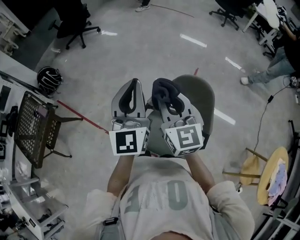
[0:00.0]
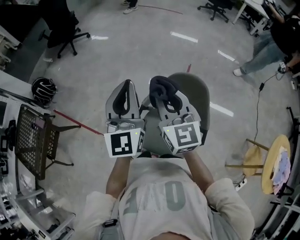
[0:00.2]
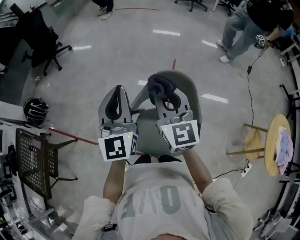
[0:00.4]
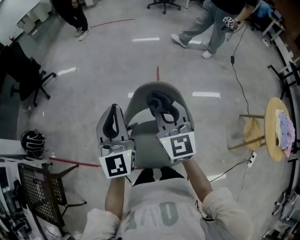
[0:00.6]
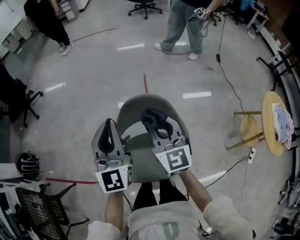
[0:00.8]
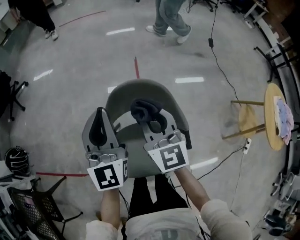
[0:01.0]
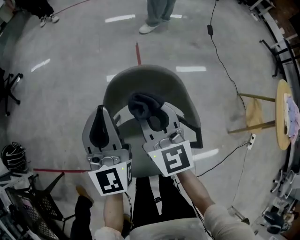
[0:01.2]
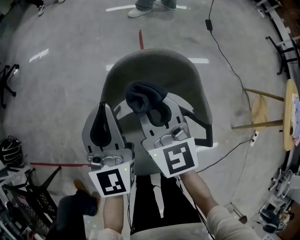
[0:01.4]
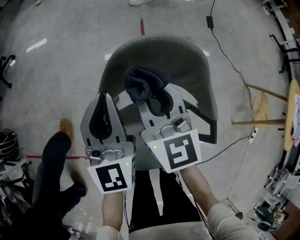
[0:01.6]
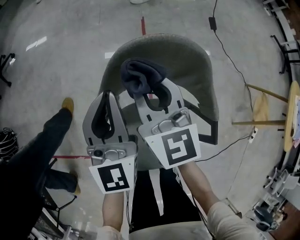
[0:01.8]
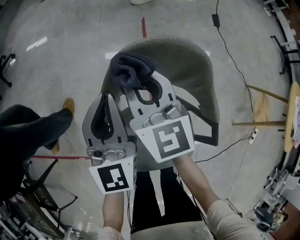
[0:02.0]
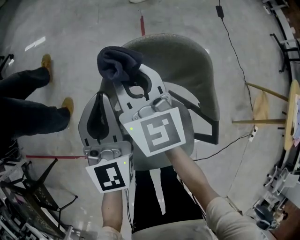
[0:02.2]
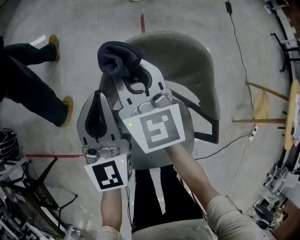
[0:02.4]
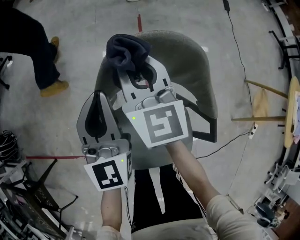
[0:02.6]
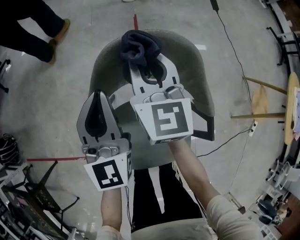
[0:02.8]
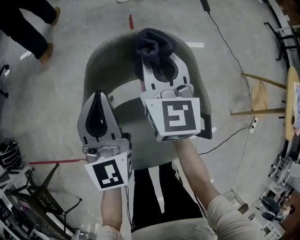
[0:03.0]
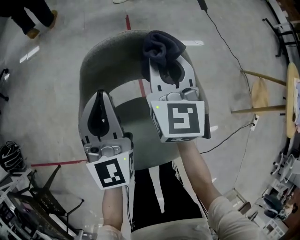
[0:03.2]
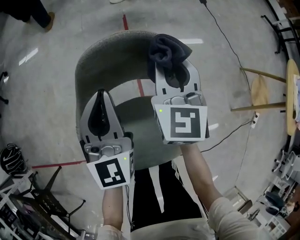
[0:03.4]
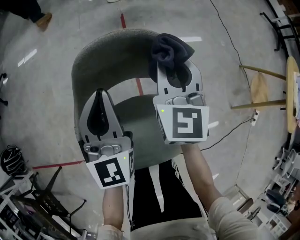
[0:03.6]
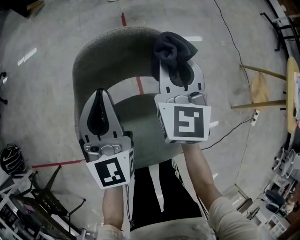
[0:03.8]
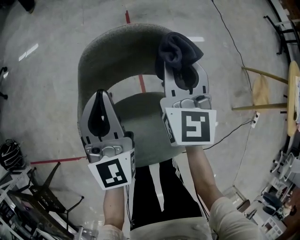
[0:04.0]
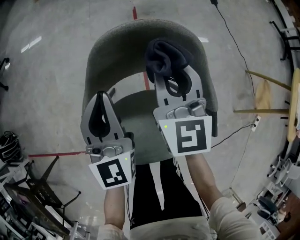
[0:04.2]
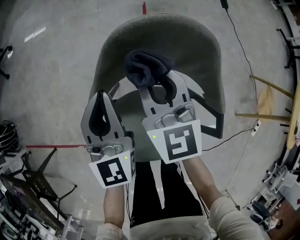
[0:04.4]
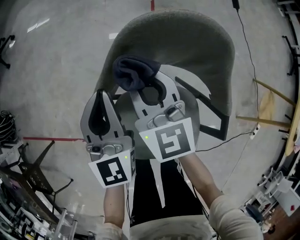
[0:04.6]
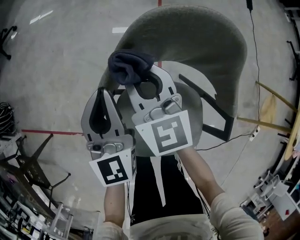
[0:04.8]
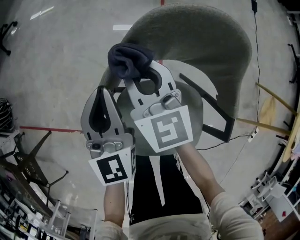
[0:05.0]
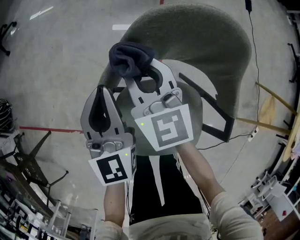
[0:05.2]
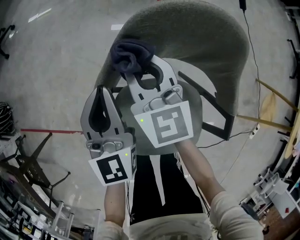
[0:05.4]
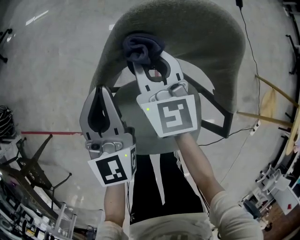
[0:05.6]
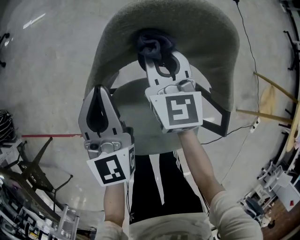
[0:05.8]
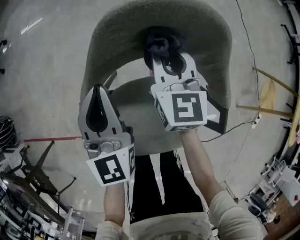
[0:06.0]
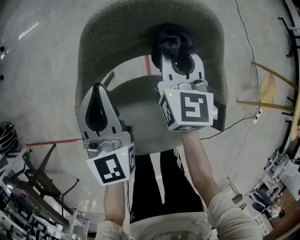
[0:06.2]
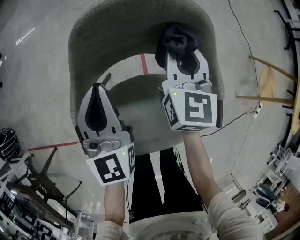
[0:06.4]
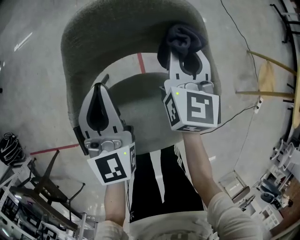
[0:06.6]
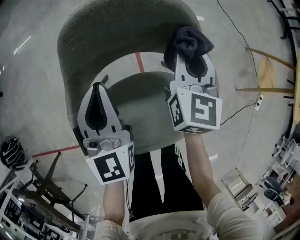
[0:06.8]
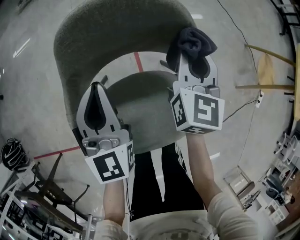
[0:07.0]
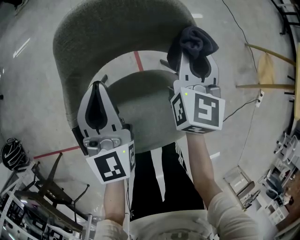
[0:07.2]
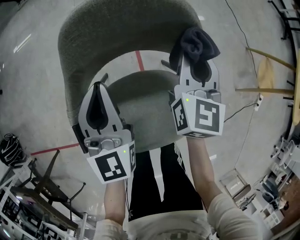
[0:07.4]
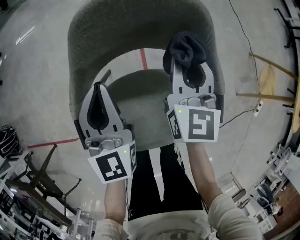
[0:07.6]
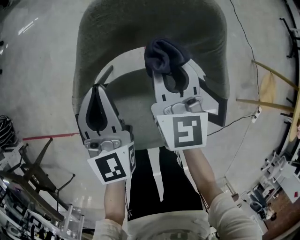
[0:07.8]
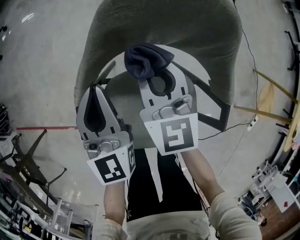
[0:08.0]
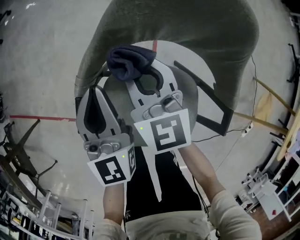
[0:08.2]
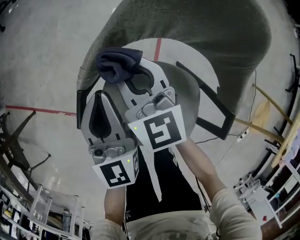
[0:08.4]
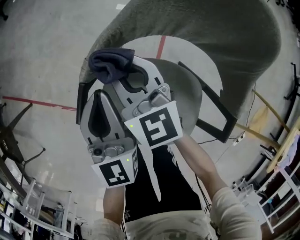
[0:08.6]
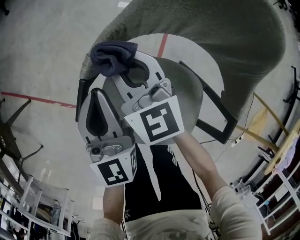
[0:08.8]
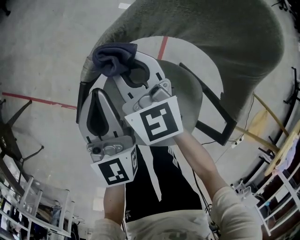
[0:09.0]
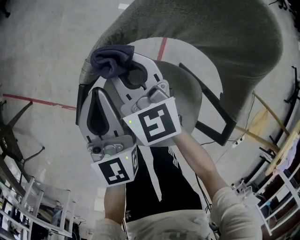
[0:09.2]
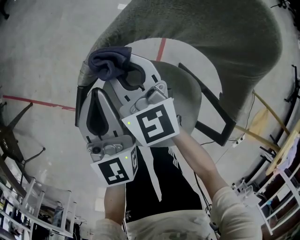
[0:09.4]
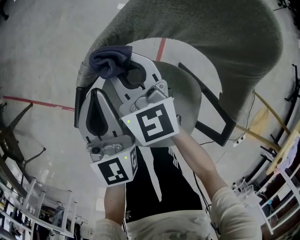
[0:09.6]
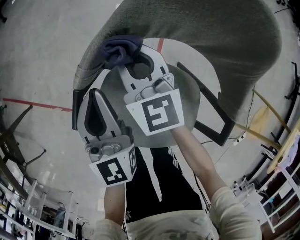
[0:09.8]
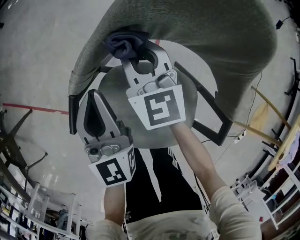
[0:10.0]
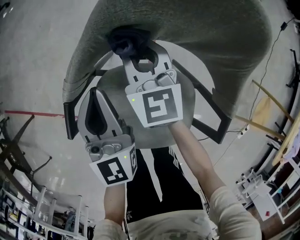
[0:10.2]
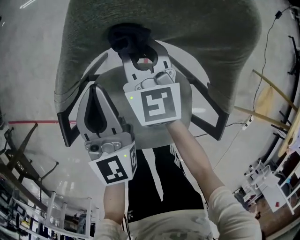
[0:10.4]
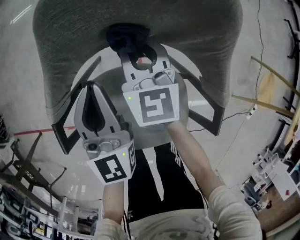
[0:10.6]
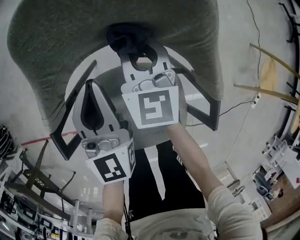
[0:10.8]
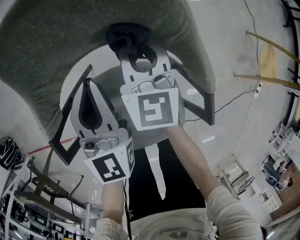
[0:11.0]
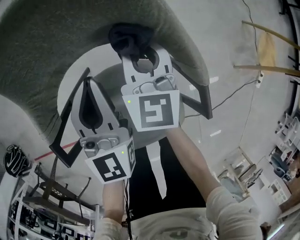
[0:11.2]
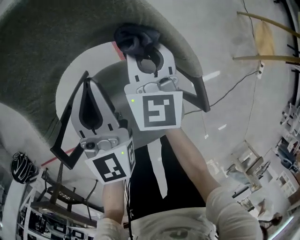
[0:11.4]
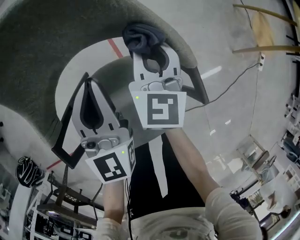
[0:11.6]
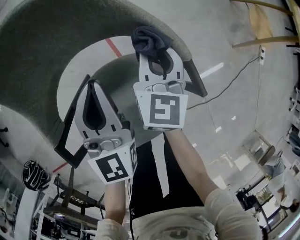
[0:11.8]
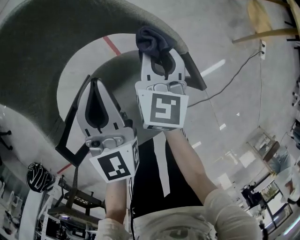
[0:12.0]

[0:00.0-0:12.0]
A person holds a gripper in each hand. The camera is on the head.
0:00.0 to 0:01.6: Both grippers travel together downward, approximately 30 cm. The left gripper swivels about 20 degrees, while the right gripper changes its angle by about 30 degrees.
0:01.6 to 0:03.0: The right gripper travels to the right by about 10 cm.
0:03.0 to 0:04.4: The right gripper is displaced to the left and backward by some 10 cm, while the left gripper shifts by some 5 cm.
0:04.4 to 0:06.0: The right gripper is displaced downward and to the right by roughly 10 cm.
0:06.0 to 0:07.6: The right gripper moves to the right, approximately 10 cm.
0:07.6 to 0:09.0: The right gripper moves approximately 30 cm, and swivels roughly 60 degrees. The left gripper changes place by roughly 15 cm, and changes its angle by roughly 30 degrees.
0:09.0 to 0:10.4: The left gripper heads to the right, covering roughly 10 cm, while the right gripper heads to the right, covering some 15 cm, and changes its angle by roughly 30 degrees.
0:10.4 to 0:12.0: The right gripper moves about 30 cm, and swivels about 60 degrees, while the left gripper shifts by about 20 cm, and turns by about 40 degrees.

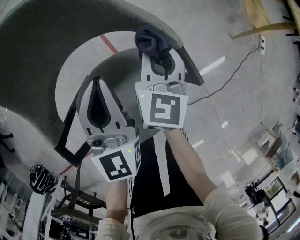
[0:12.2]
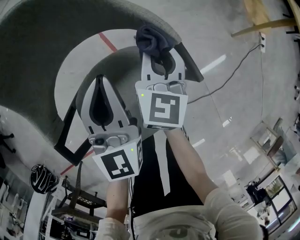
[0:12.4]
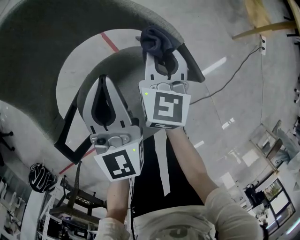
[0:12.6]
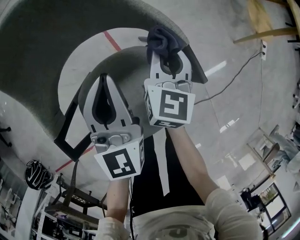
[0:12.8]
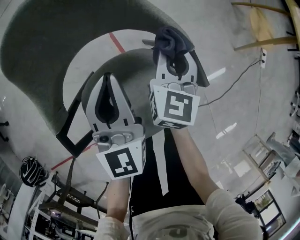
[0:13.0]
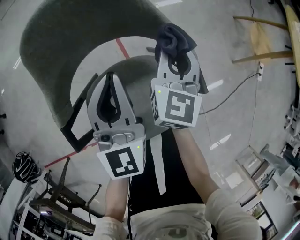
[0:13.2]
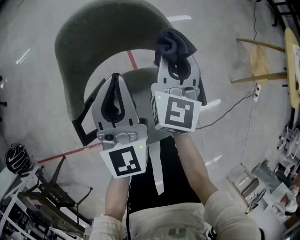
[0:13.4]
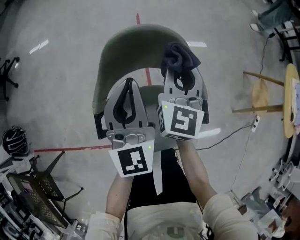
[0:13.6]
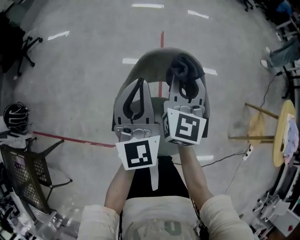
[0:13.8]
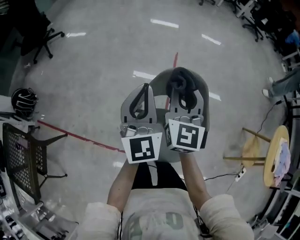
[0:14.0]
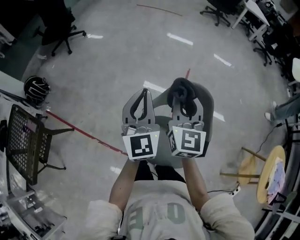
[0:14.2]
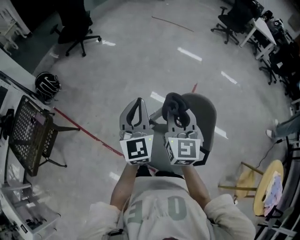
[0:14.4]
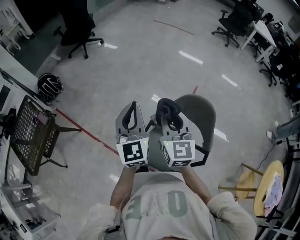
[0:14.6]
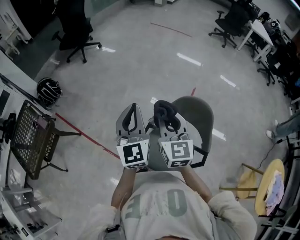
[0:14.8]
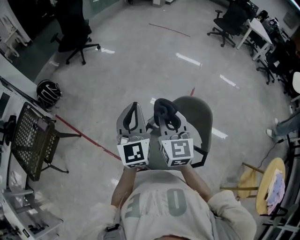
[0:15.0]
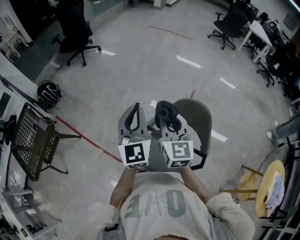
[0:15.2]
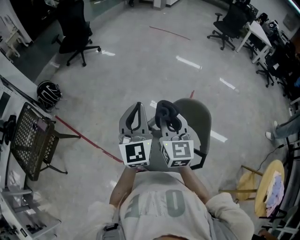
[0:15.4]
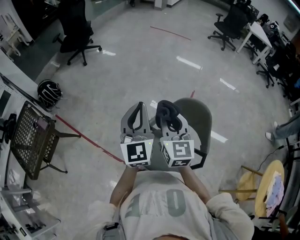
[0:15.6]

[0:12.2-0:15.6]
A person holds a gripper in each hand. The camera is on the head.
0:12.2 to 0:13.8: Both grippers move upward, about 30 cm. The right gripper swivels some 40 degrees. Meanwhile the left gripper rotates roughly 30 degrees.
0:13.8 to 0:15.6: The left gripper ends up approximately 25 cm from where it was, and rotates about 20 degrees. Meanwhile the right gripper moves roughly 25 cm, and swivels roughly 40 degrees.

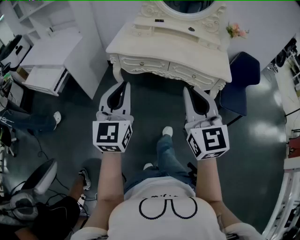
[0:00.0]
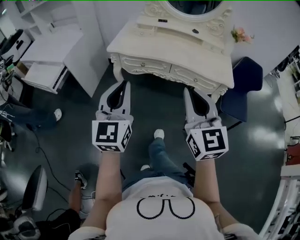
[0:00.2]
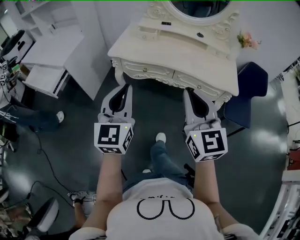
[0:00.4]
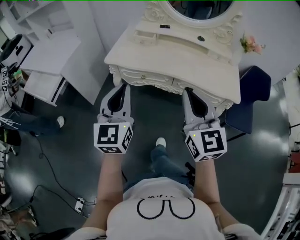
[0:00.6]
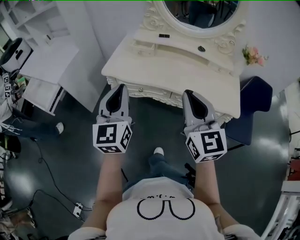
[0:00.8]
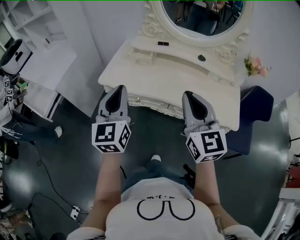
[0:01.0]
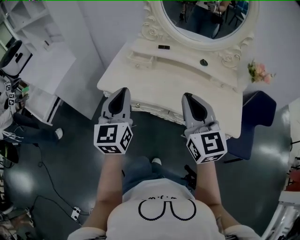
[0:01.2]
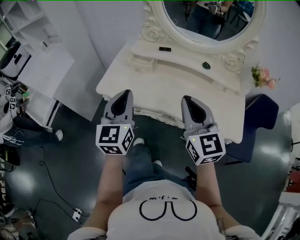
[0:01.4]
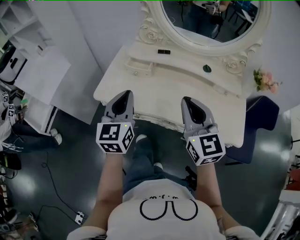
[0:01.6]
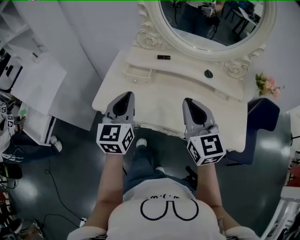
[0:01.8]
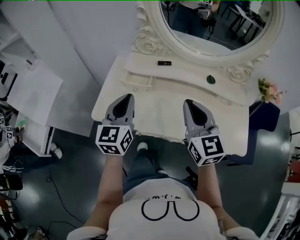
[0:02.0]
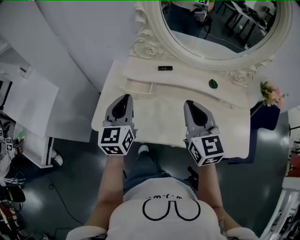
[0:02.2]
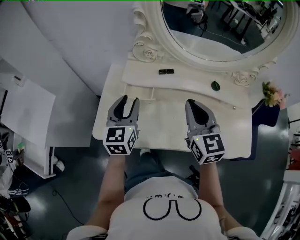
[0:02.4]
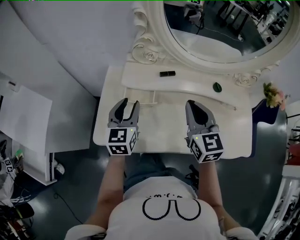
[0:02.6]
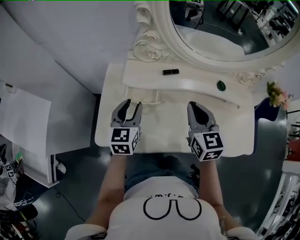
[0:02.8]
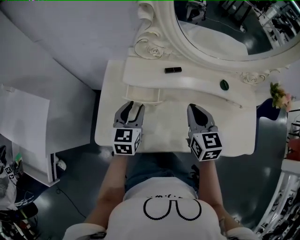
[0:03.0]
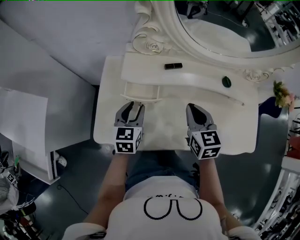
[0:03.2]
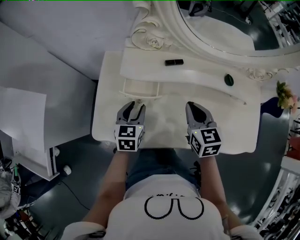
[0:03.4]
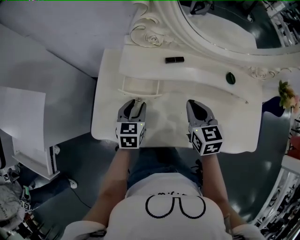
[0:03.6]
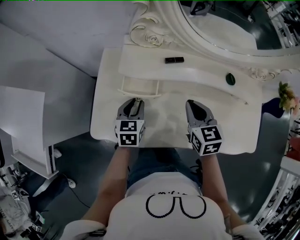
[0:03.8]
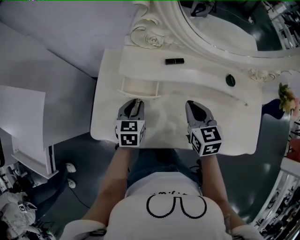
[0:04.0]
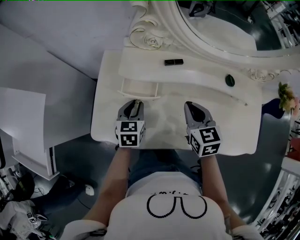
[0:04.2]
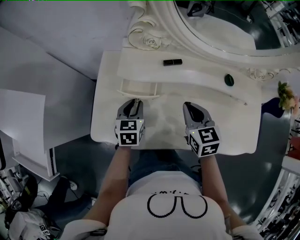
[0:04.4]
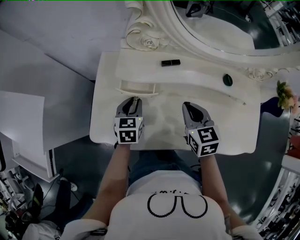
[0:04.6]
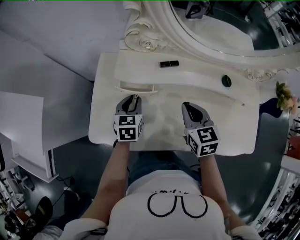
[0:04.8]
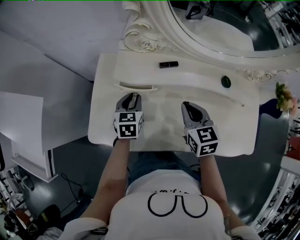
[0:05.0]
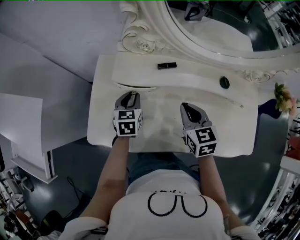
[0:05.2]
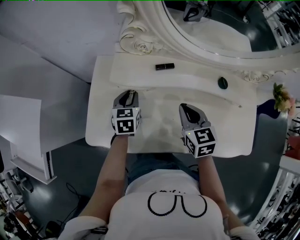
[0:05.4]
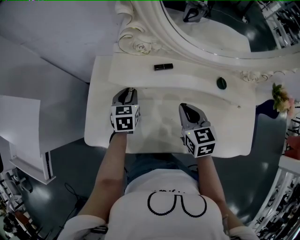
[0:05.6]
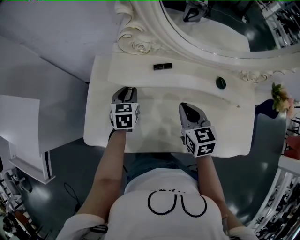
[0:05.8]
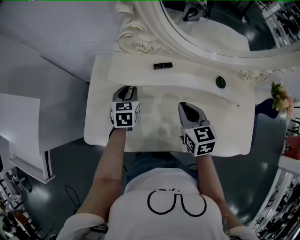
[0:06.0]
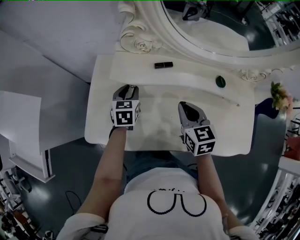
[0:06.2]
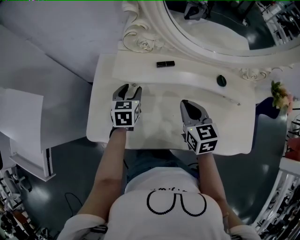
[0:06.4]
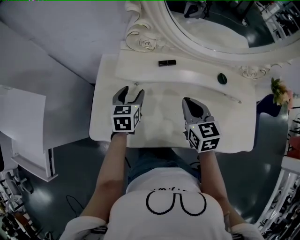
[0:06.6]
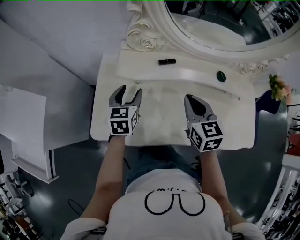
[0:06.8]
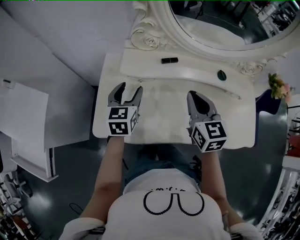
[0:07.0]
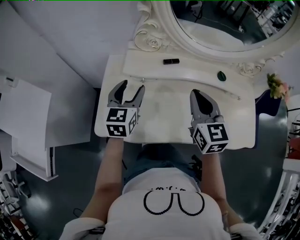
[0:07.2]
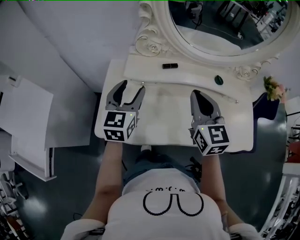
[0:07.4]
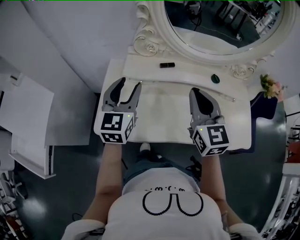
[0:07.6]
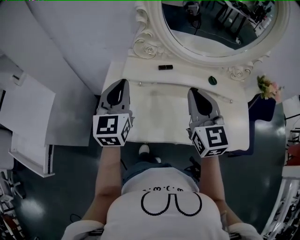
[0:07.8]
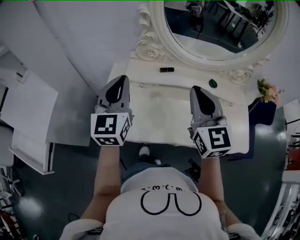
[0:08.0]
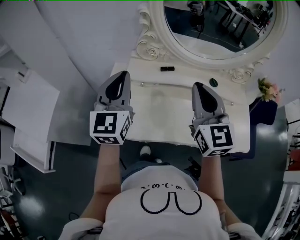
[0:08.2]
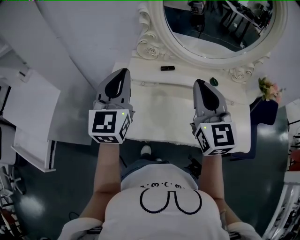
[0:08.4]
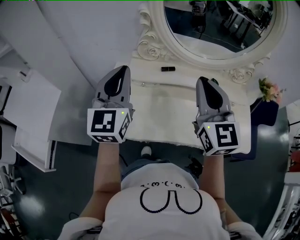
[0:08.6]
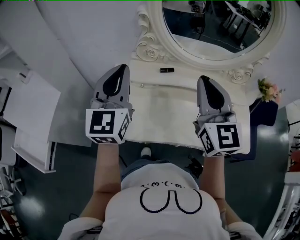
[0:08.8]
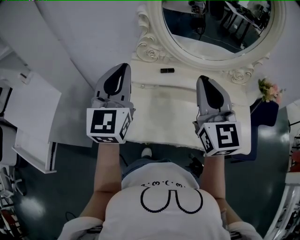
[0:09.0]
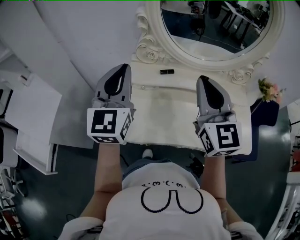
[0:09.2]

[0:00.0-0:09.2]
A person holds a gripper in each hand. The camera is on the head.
0:00.0 to 0:01.6: The pair of grippers is taken forward, approximately 40 cm.
0:01.6 to 0:03.0: Both grippers travel together forward and downward, about 30 cm. The right gripper rotates roughly 30 degrees, while the left gripper swivels some 20 degrees, and opens.
0:03.0 to 0:04.6: The grippers both shift downward by about 5 cm.
0:04.6 to 0:06.2: The left gripper is displaced forward by some 5 cm.
0:06.2 to 0:07.6: The left gripper moves upward and backward, some 25 cm, angles its fingers upward, by about 30 degrees, and opens up. Meanwhile the right gripper shifts approximately 15 cm upward, and rotates about 30 degrees.
0:07.6 to 0:09.2: The grippers both shift upward by approximately 15 cm. The left gripper closes.
